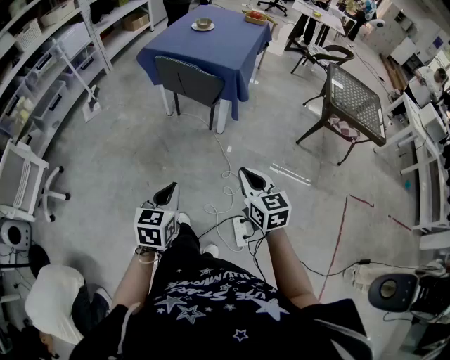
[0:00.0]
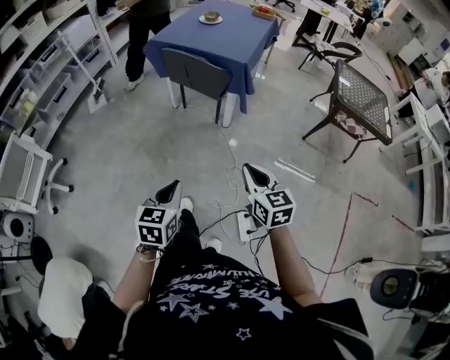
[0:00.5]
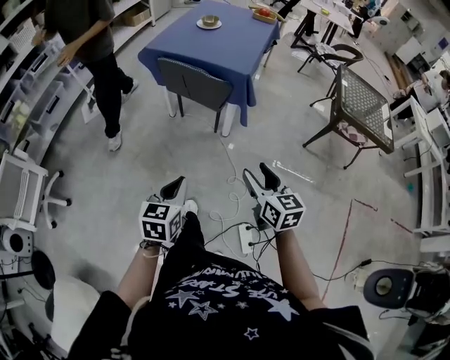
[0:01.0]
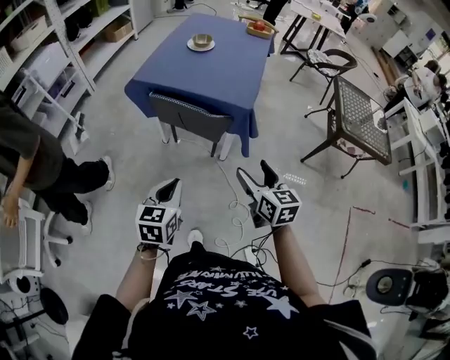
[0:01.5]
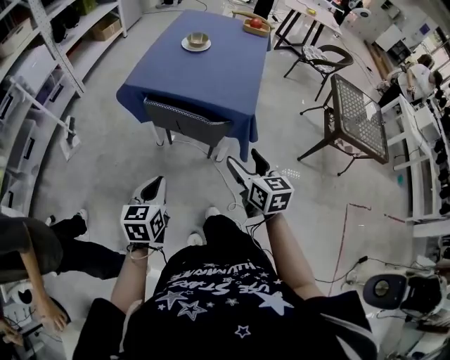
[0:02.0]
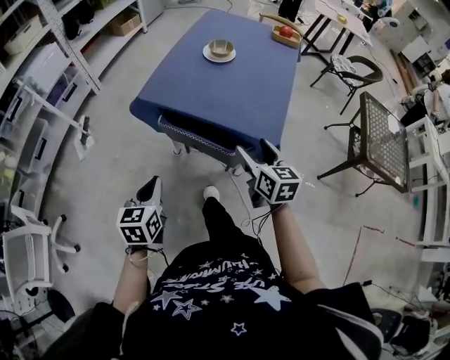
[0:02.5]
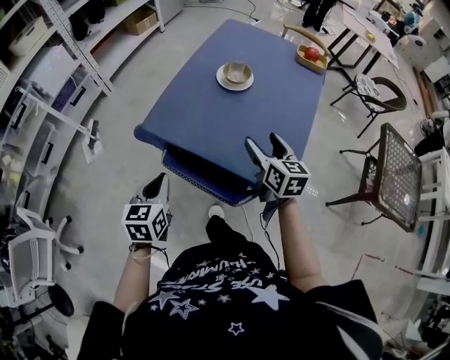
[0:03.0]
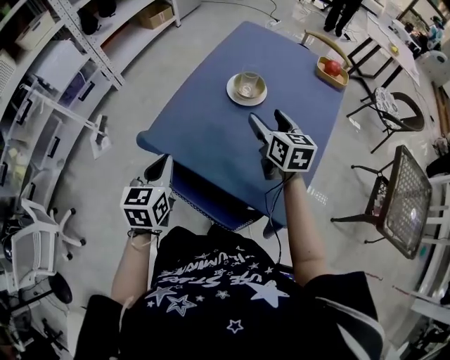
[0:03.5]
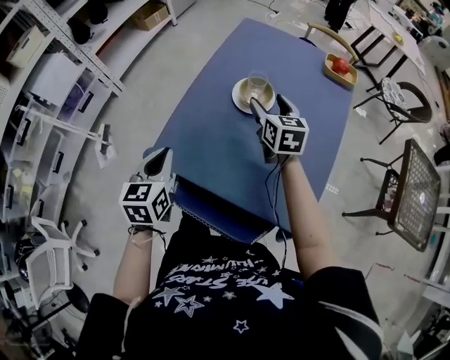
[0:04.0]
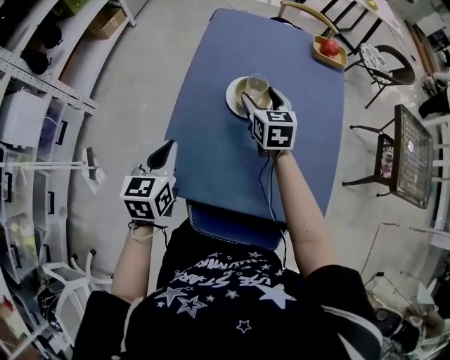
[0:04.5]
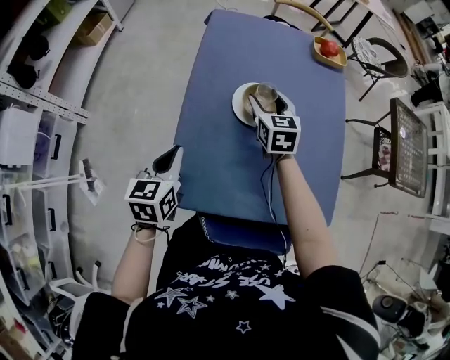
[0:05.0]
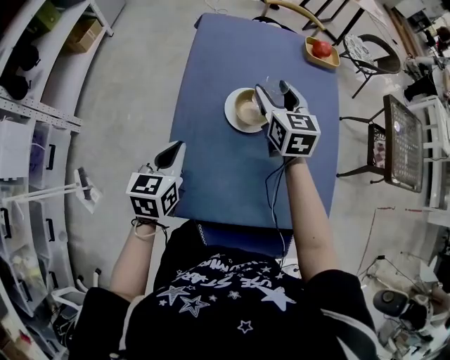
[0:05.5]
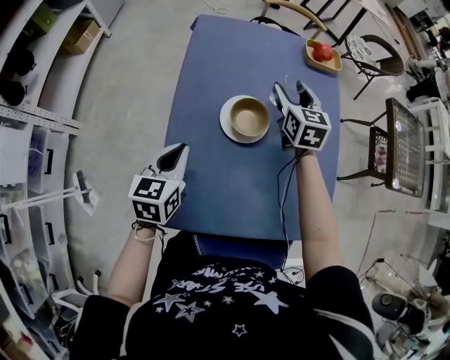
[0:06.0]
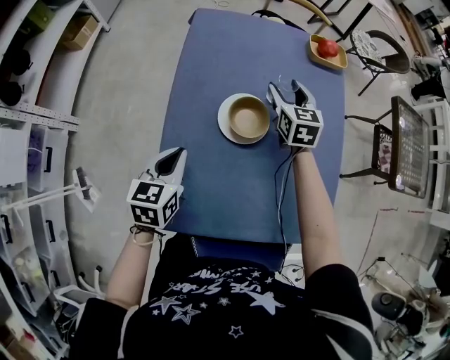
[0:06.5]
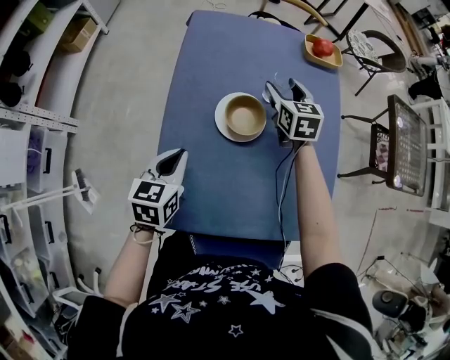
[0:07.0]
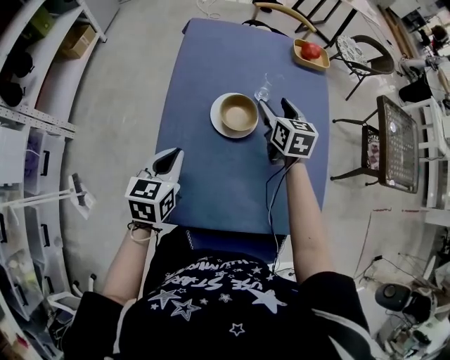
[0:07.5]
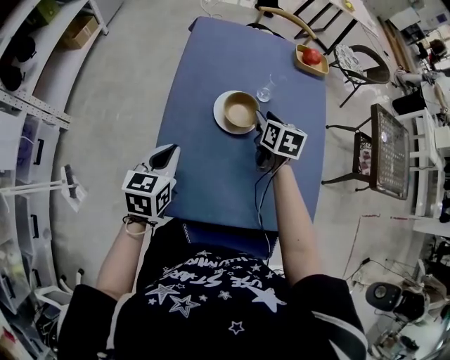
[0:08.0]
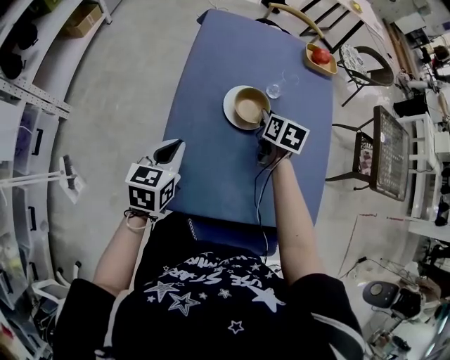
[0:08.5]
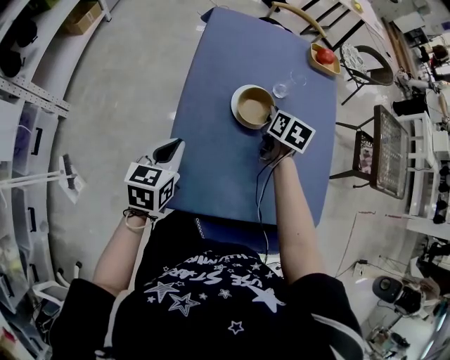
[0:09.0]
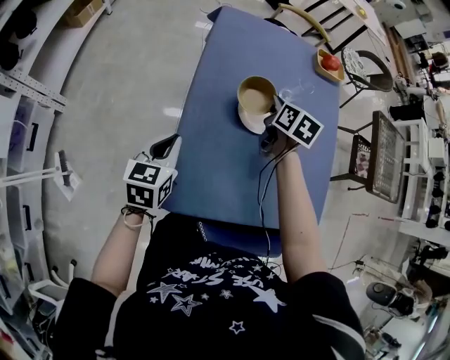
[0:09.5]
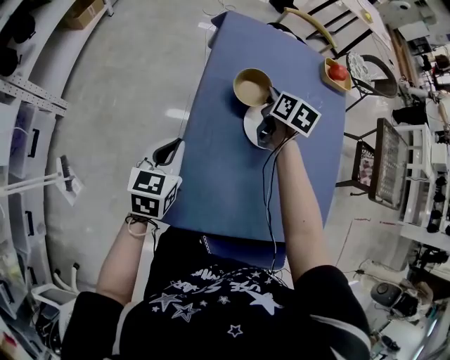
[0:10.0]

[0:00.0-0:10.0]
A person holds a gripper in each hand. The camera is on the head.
0:00.0 to 0:02.0: The two grippers go about 40 cm forward. The right gripper opens up.
0:02.0 to 0:04.0: The pair of grippers is taken forward, about 60 cm.
0:04.0 to 0:06.0: The right gripper moves some 15 cm, and changes its angle by about 20 degrees; the left gripper shifts by some 20 cm, and swivels approximately 30 degrees.
0:06.0 to 0:08.0: The right gripper shifts approximately 10 cm backward and downward, and swivels approximately 20 degrees.
0:08.0 to 0:10.0: The right gripper is displaced to the left and forward by approximately 15 cm, and closes up, while the left gripper goes about 10 cm to the left.

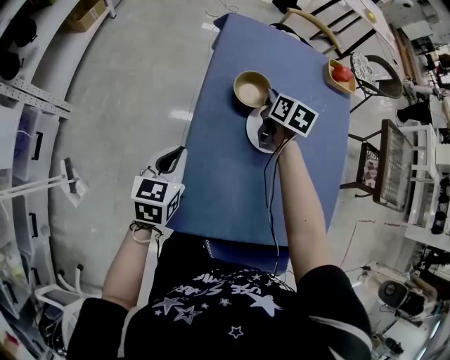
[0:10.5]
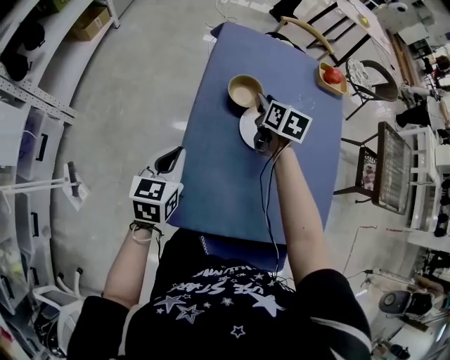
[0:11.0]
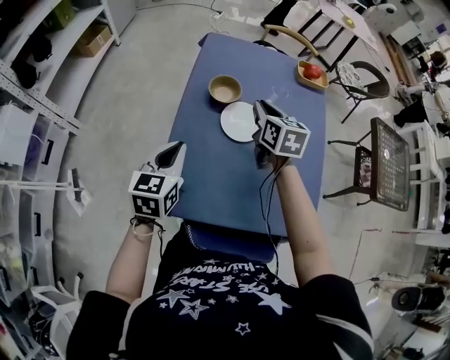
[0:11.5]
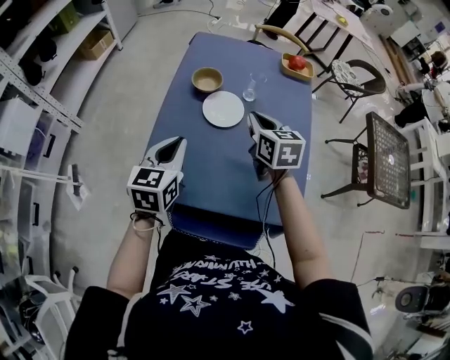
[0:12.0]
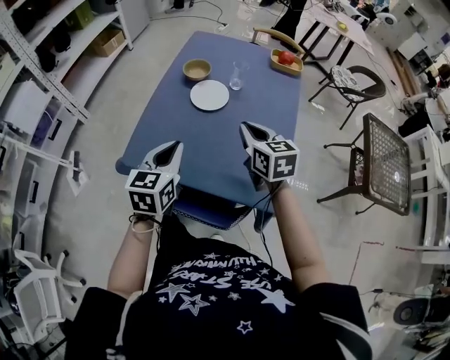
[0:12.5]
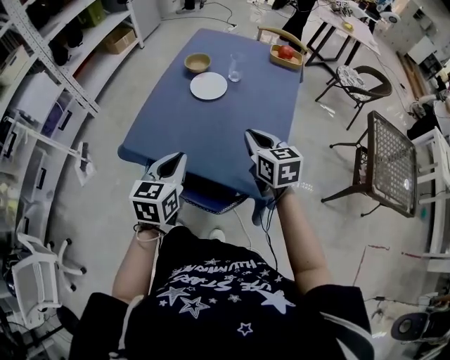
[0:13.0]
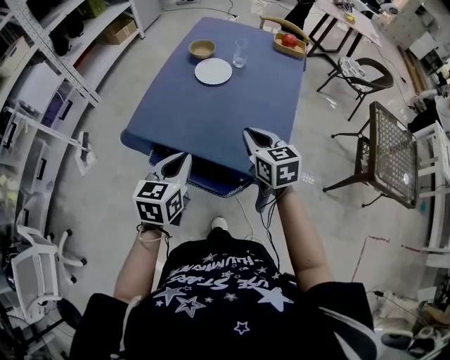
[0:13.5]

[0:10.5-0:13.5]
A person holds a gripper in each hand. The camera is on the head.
0:10.5 to 0:12.0: The right gripper travels backward, upward and to the right by approximately 25 cm, and rotates approximately 30 degrees. The left gripper travels to the right, upward and backward by roughly 20 cm.
0:12.0 to 0:13.5: The two grippers go some 25 cm backward.

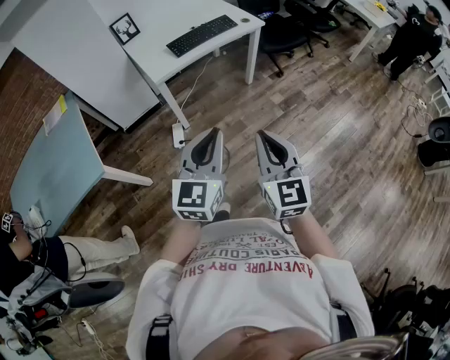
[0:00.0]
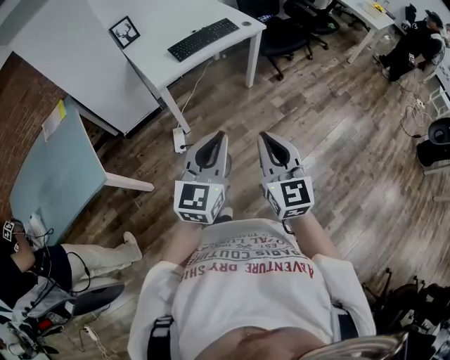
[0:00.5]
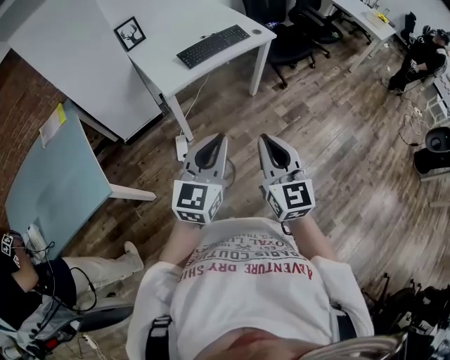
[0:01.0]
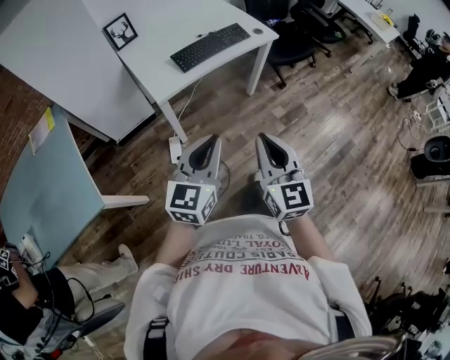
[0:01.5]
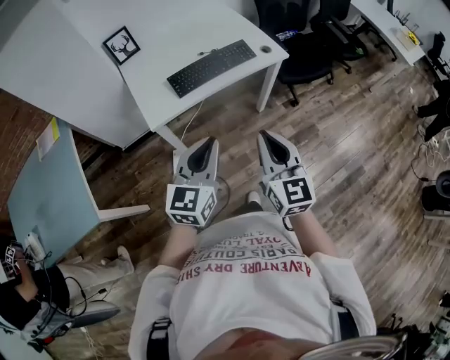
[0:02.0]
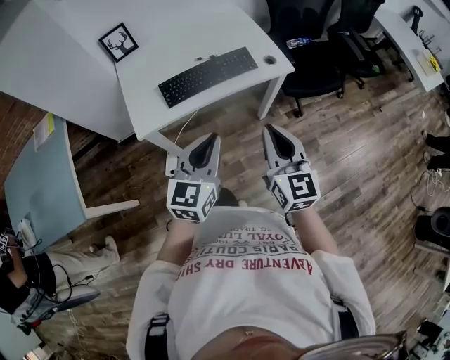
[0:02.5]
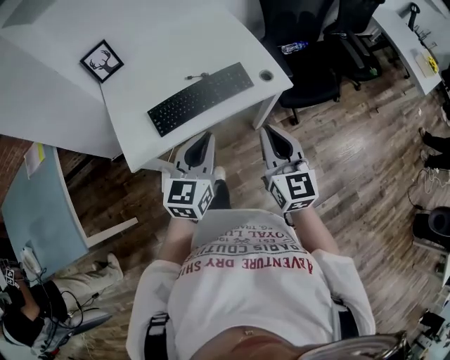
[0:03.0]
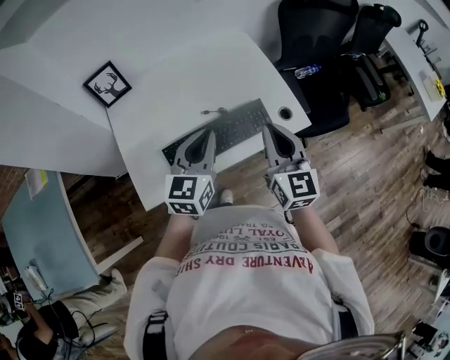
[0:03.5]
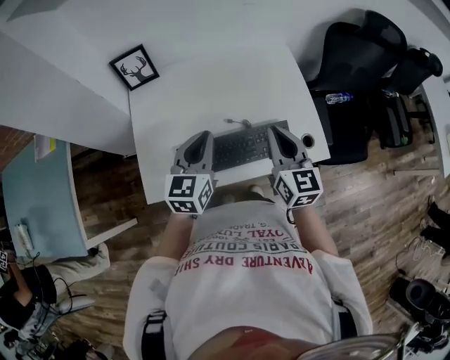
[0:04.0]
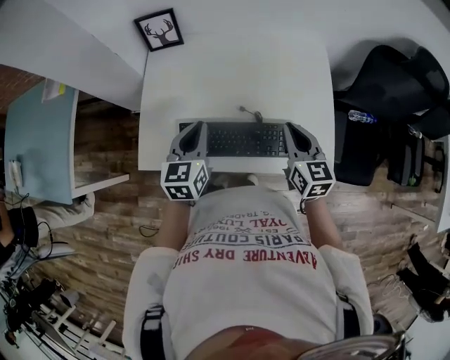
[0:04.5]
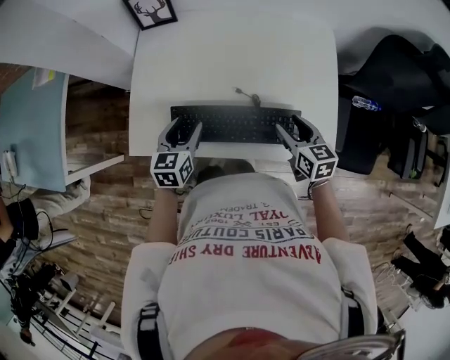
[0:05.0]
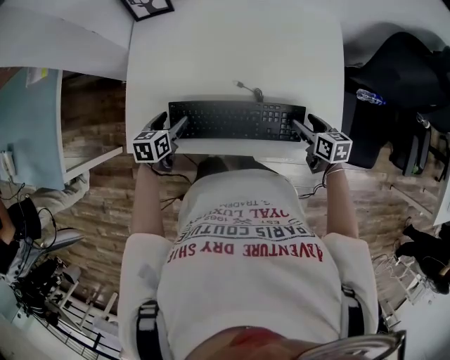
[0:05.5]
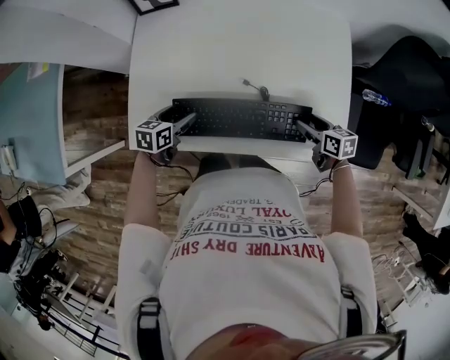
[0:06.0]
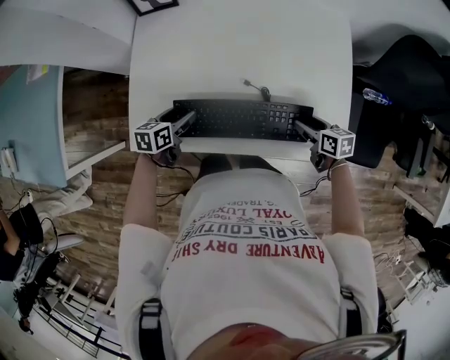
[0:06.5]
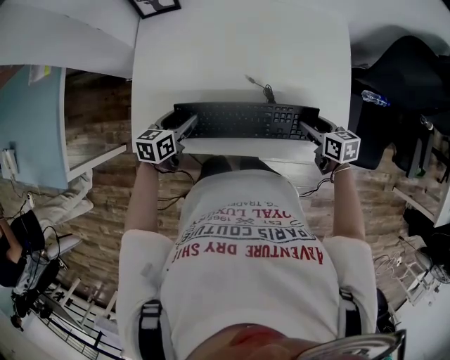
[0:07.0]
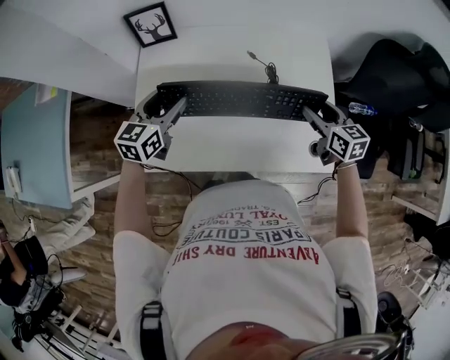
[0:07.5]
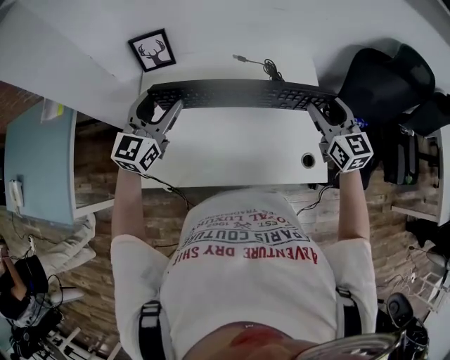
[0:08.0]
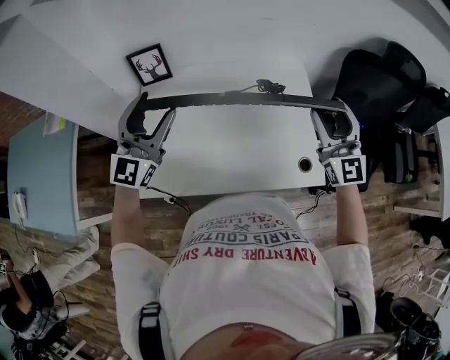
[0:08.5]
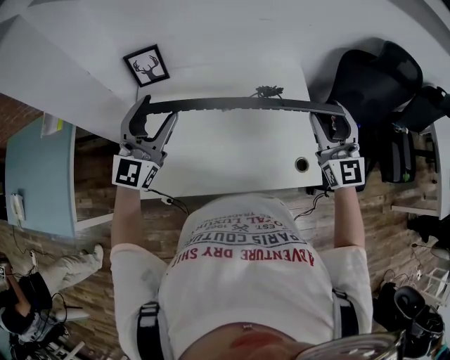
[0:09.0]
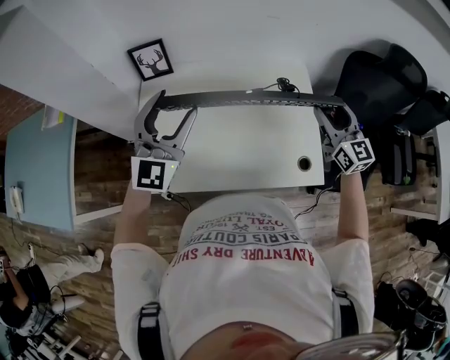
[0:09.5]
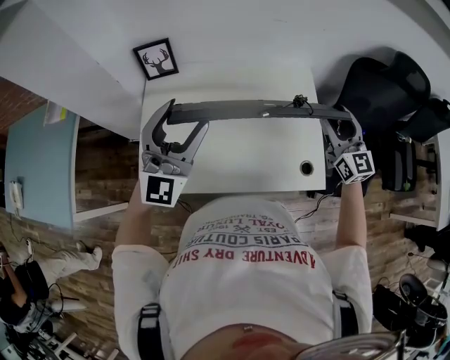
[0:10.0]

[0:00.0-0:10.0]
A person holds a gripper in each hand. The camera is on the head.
0:00.0 to 0:02.0: Both grippers move forward, approximately 35 cm.
0:02.0 to 0:04.0: Both grippers are carried forward, some 50 cm. The left gripper changes its angle by about 20 degrees.
0:04.0 to 0:06.0: The left gripper shifts some 25 cm downward, points its fingers approximately 30 degrees further downward, and opens, while the right gripper travels downward and to the right by approximately 30 cm, tilts its fingers some 30 degrees downward, and opens up.
0:06.0 to 0:08.0: Both grippers move upward, about 30 cm. The right gripper angles its fingers upward, by some 30 degrees. The left gripper points its fingers some 40 degrees further upward.
0:08.0 to 0:10.0: The left gripper shifts about 10 cm upward, backward and to the right, and rotates approximately 30 degrees. The right gripper goes upward and returns, roughly 10 cm each way.

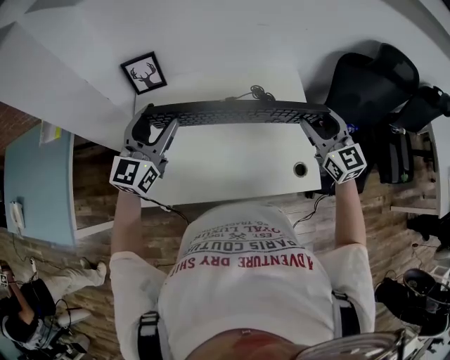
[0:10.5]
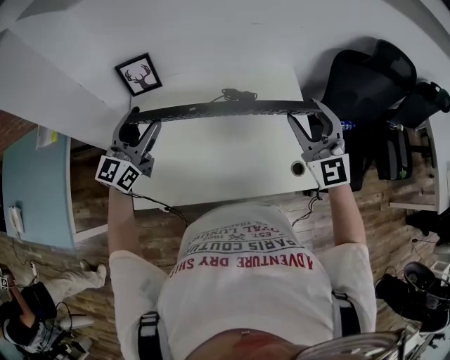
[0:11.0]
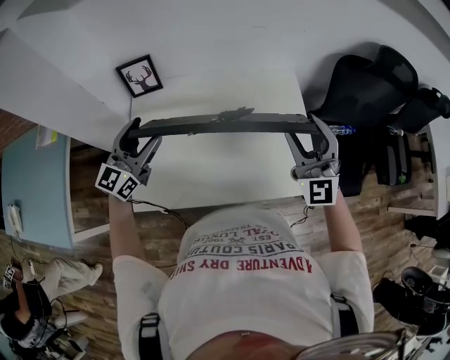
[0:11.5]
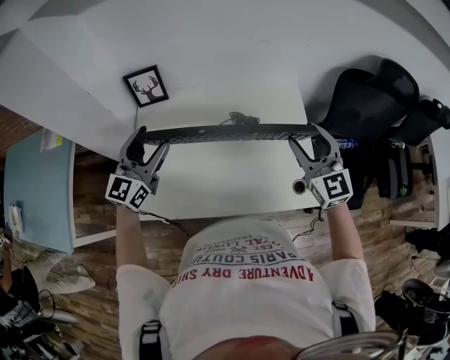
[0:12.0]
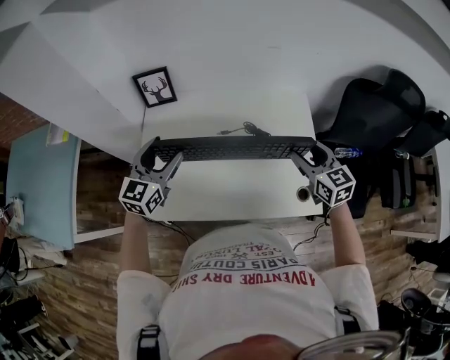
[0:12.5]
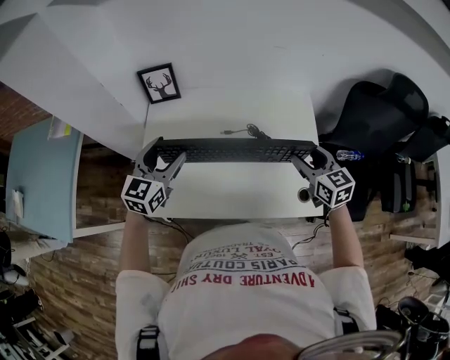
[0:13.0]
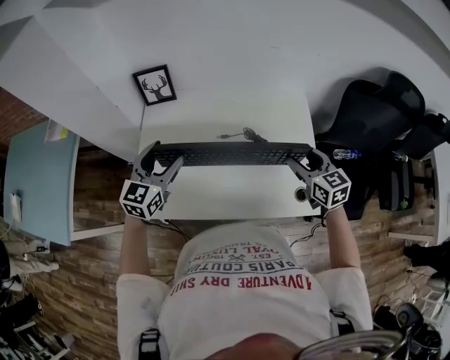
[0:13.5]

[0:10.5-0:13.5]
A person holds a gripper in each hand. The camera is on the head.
0:12.0 to 0:13.5: The left gripper heads downward, covering some 5 cm; the right gripper shifts roughly 10 cm downward, and turns by about 30 degrees.
